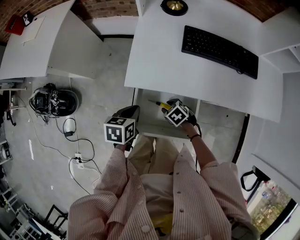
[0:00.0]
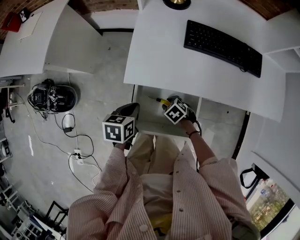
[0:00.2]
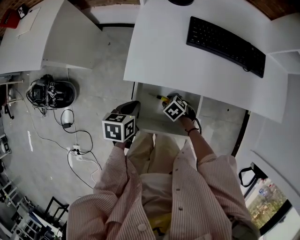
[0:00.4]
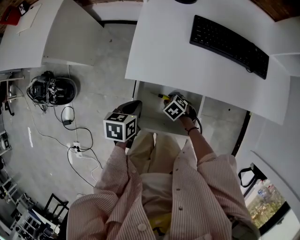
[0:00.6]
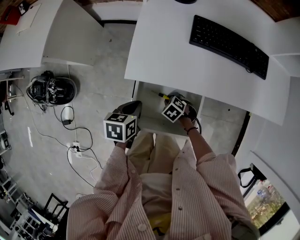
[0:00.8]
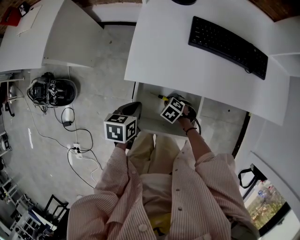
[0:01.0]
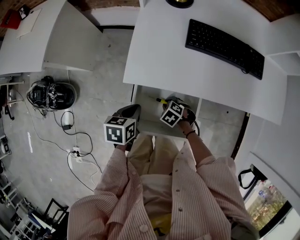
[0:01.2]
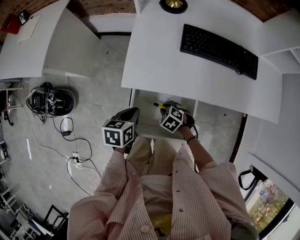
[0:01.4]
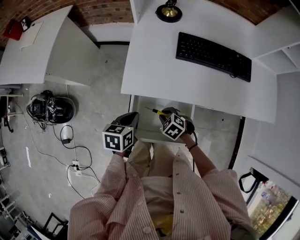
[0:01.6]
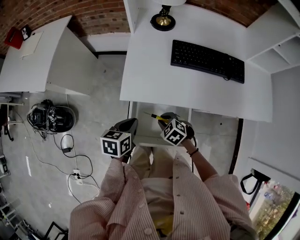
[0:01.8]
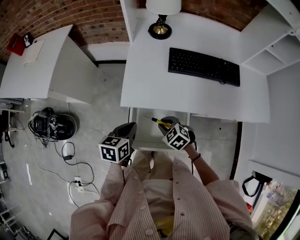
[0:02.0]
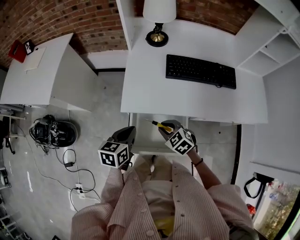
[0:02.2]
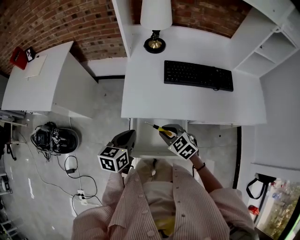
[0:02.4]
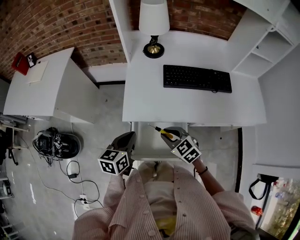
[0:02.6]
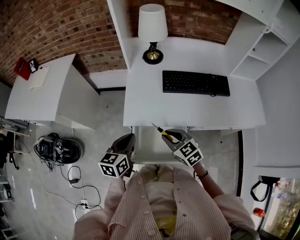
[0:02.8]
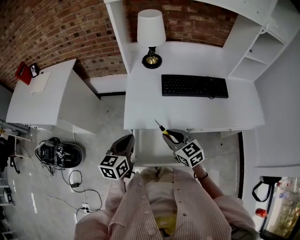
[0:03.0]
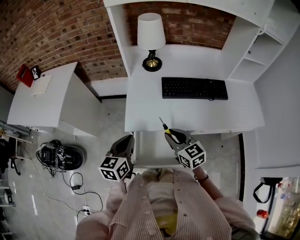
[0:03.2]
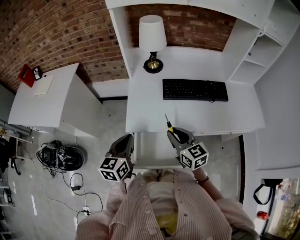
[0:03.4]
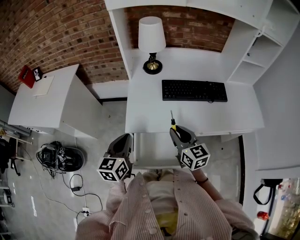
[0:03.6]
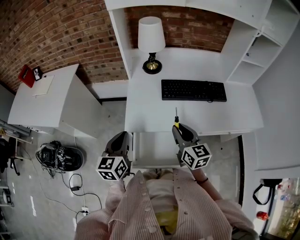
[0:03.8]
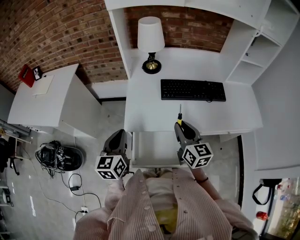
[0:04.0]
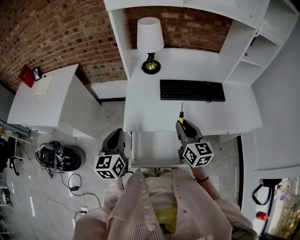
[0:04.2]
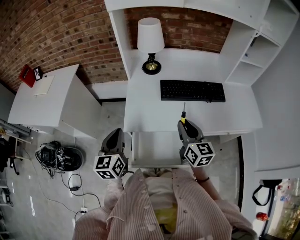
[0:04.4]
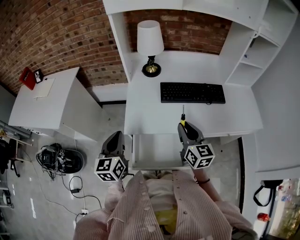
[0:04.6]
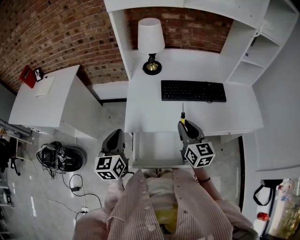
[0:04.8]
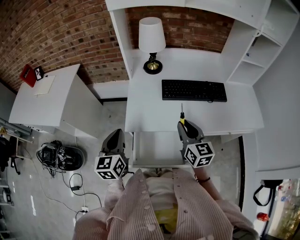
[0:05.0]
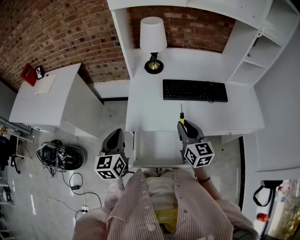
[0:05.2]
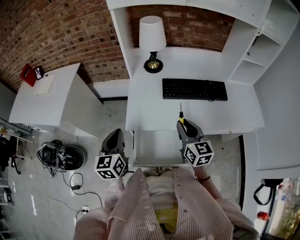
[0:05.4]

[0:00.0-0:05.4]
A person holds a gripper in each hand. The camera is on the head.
0.0 to 1.4 s: The grippers make only small movements.
1.4 to 2.8 s: The left gripper travels upward by roughly 15 cm, and rotates about 30 degrees, while the right gripper shifts roughly 25 cm upward, and points its fingers approximately 40 degrees further upward.
2.8 to 4.0 s: The left gripper travels upward by about 5 cm. Meanwhile the right gripper is displaced upward and to the right by approximately 15 cm, and rotates roughly 40 degrees.
4.0 to 5.4 s: The grippers stay close to where they were, moving slightly.

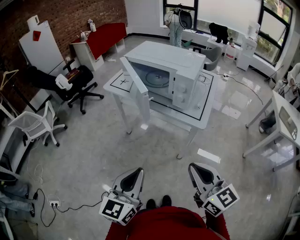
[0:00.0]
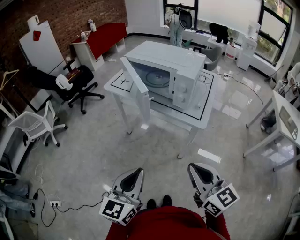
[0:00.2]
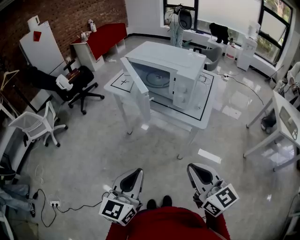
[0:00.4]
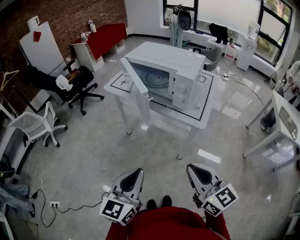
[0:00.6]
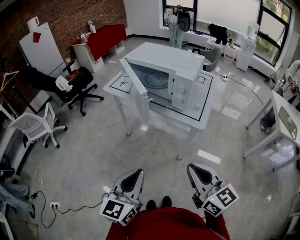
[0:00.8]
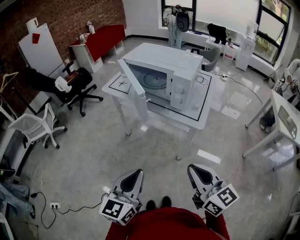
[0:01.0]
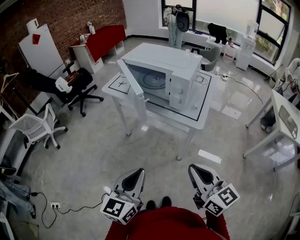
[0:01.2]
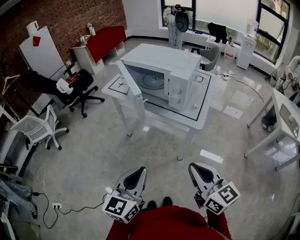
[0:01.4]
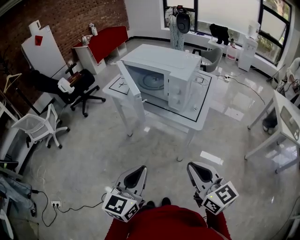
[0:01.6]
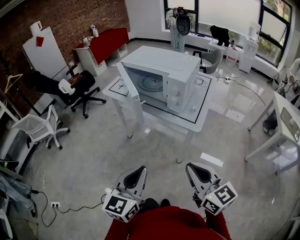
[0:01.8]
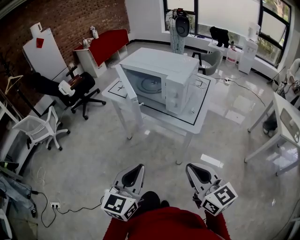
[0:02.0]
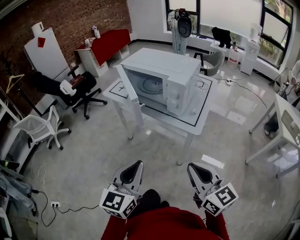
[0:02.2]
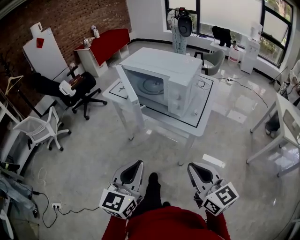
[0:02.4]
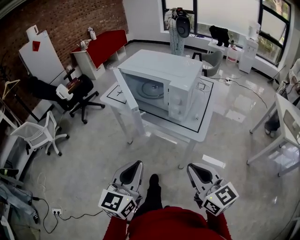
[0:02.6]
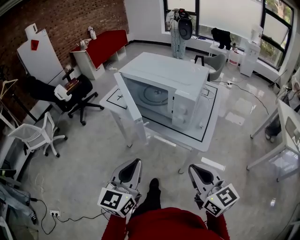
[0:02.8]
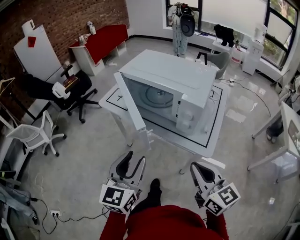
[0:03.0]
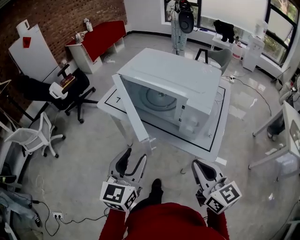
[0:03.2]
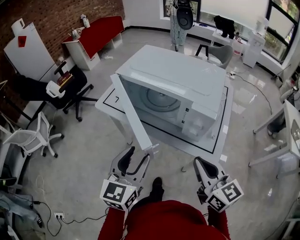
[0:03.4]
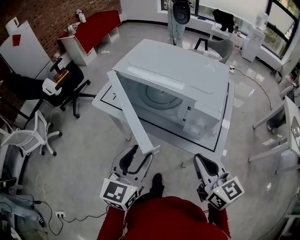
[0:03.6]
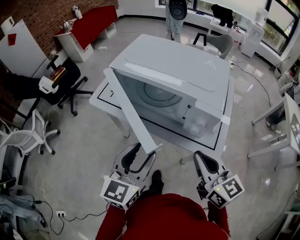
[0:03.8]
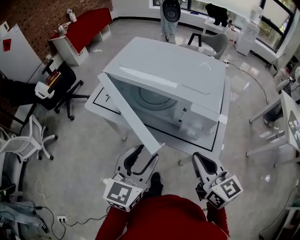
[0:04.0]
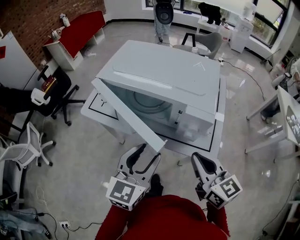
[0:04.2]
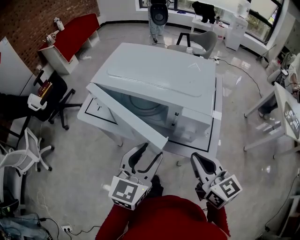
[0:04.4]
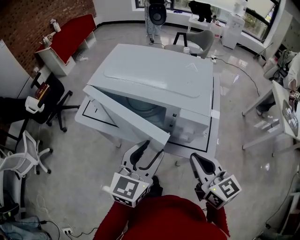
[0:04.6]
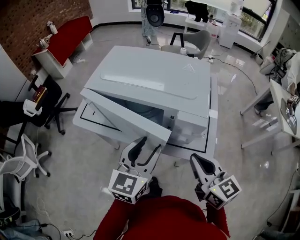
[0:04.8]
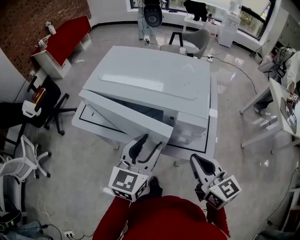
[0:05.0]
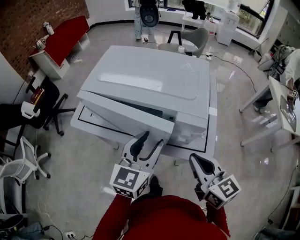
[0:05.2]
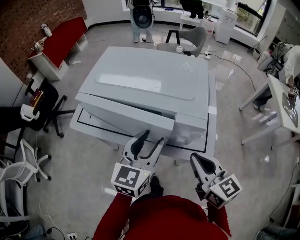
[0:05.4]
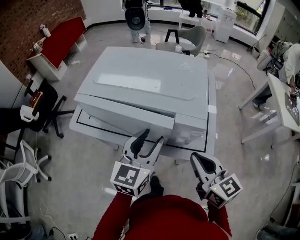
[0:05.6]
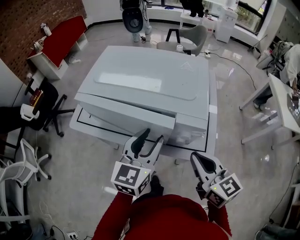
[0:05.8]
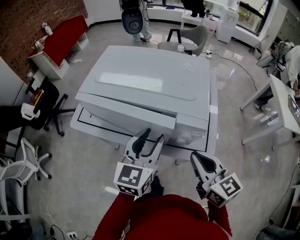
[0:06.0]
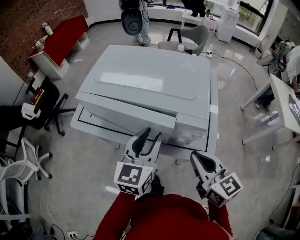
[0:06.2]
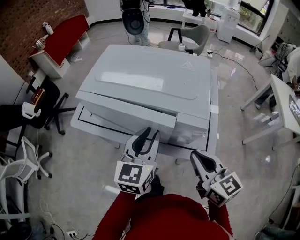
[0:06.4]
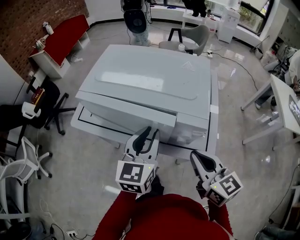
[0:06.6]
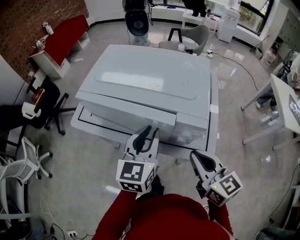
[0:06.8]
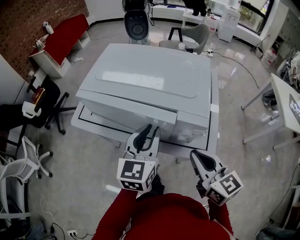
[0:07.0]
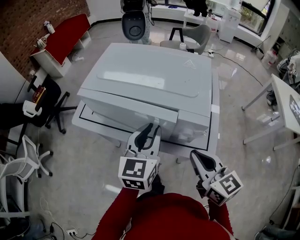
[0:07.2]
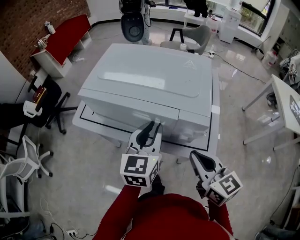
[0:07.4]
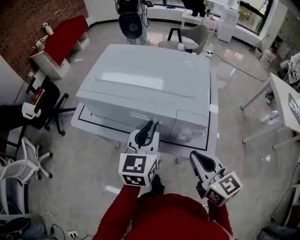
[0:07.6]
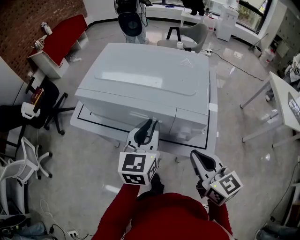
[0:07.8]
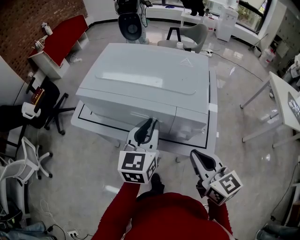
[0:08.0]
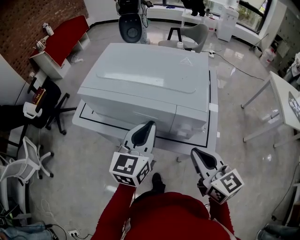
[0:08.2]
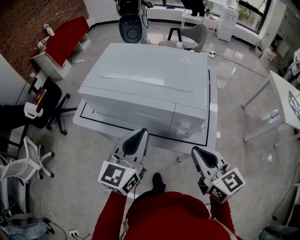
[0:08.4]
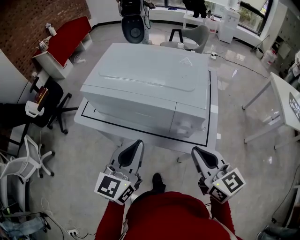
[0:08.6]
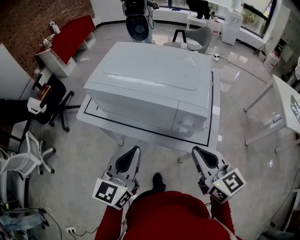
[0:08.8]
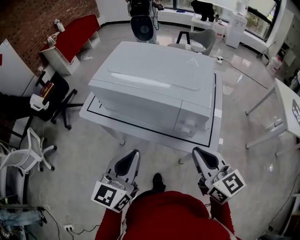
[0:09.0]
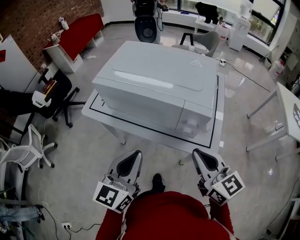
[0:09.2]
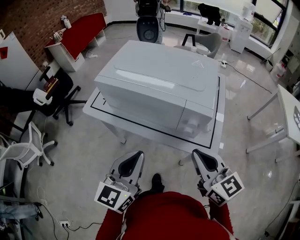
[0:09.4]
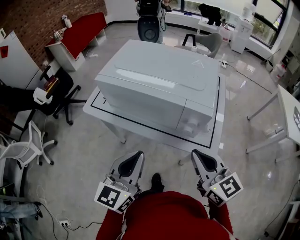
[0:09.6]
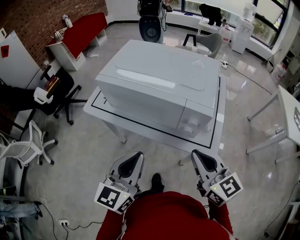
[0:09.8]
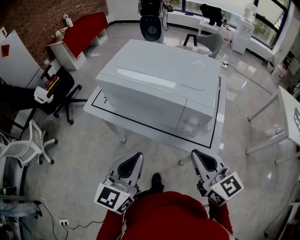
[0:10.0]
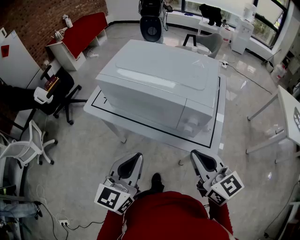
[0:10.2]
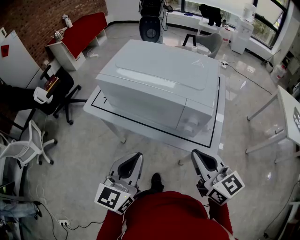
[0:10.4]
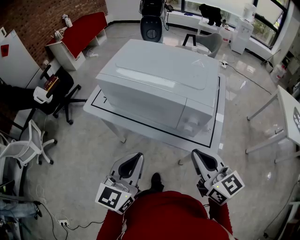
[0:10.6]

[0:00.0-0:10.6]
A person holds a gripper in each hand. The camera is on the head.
0.0 to 1.6 s: The grippers make only small movements.
1.6 to 3.0 s: Both grippers travel together forward, approximately 15 cm. The left gripper opens its fingers.
3.0 to 4.6 s: The left gripper moves forward and to the right, about 15 cm, and turns by roughly 20 degrees. The right gripper shifts approximately 10 cm forward.
4.6 to 6.0 s: The left gripper shifts some 5 cm forward.
6.0 to 7.6 s: The left gripper closes up.
7.6 to 9.0 s: The left gripper travels backward and to the left by about 15 cm.
9.0 to 10.6 s: The grippers move only a little.

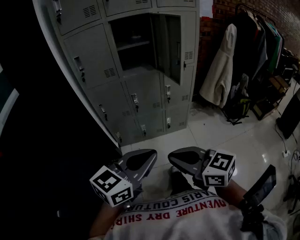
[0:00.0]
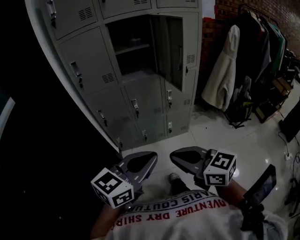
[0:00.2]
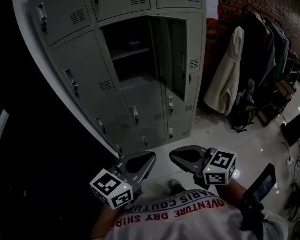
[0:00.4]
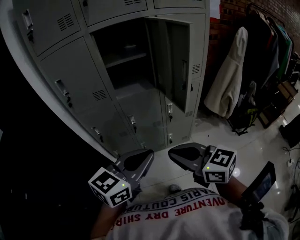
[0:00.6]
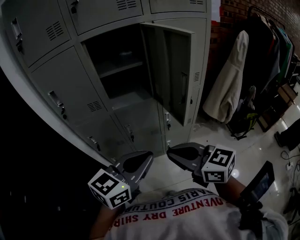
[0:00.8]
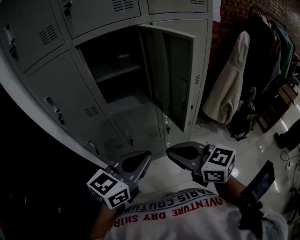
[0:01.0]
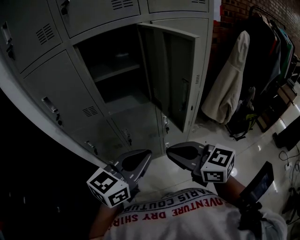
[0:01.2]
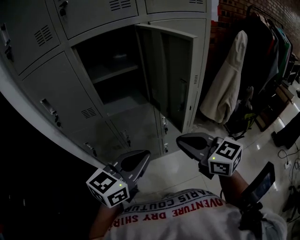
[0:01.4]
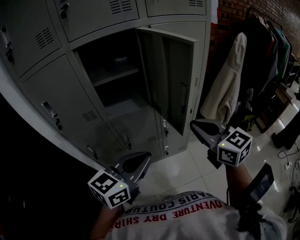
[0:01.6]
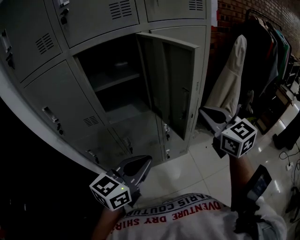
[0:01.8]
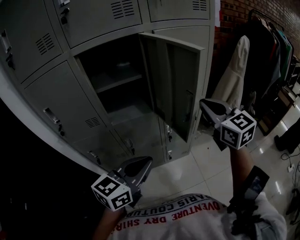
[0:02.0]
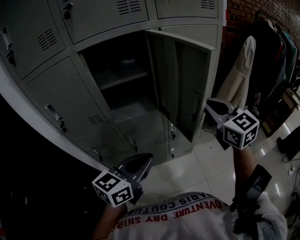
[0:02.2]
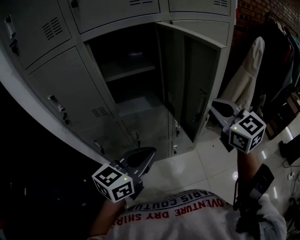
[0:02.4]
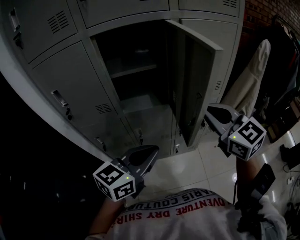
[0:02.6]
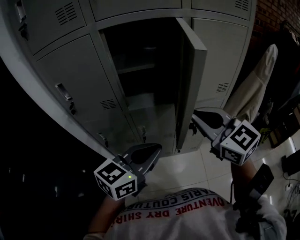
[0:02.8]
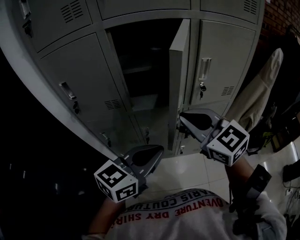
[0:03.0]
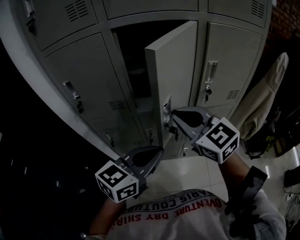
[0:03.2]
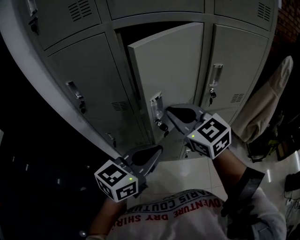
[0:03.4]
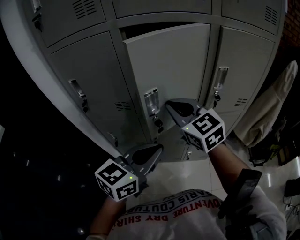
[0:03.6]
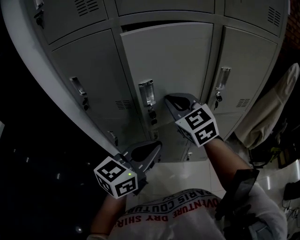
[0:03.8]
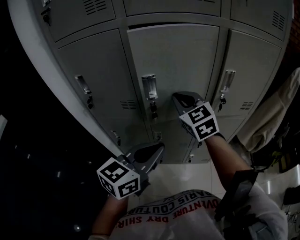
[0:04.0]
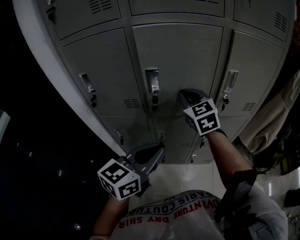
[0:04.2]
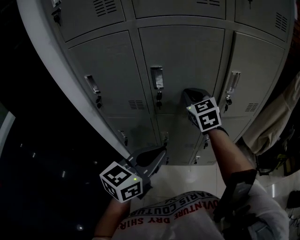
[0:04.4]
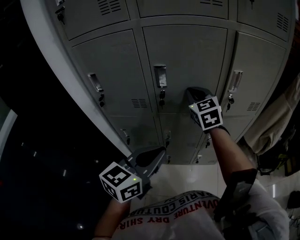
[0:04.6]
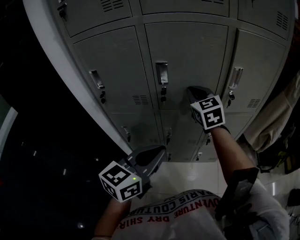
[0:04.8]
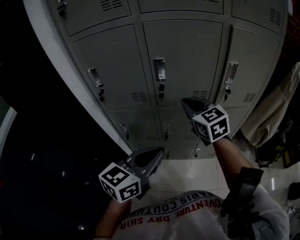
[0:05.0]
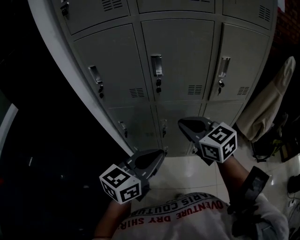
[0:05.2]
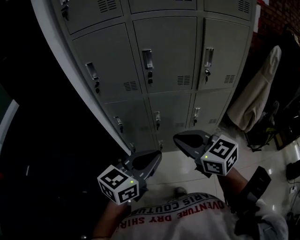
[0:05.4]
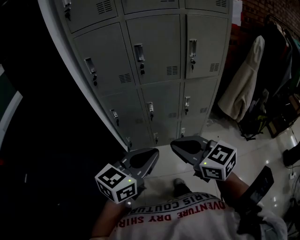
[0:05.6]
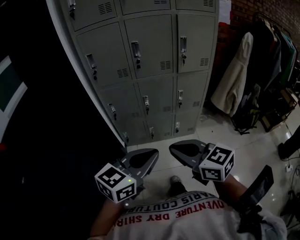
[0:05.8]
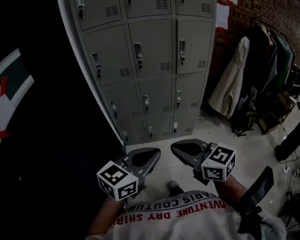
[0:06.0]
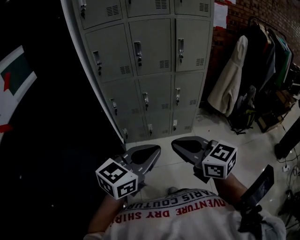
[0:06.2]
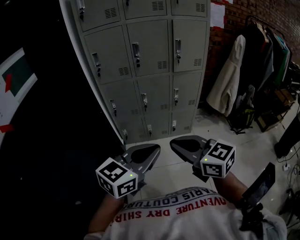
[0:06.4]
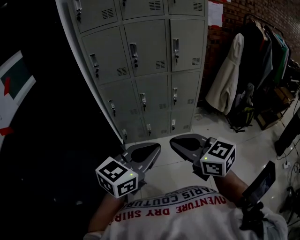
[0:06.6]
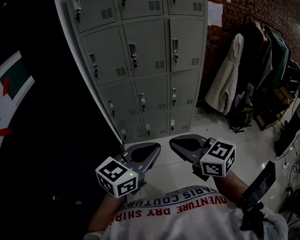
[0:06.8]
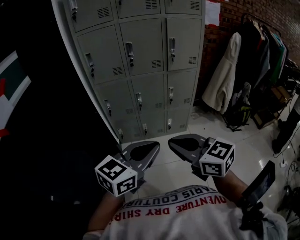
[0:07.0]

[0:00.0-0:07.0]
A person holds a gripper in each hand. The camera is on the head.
0.0 to 1.4 s: Both grippers move forward, roughly 35 cm.
1.4 to 2.8 s: The right gripper travels forward, upward and to the left by approximately 15 cm. The left gripper shifts by some 5 cm.
2.8 to 4.2 s: The left gripper shifts some 5 cm to the left. The right gripper heads forward and to the left, covering roughly 20 cm.
4.2 to 5.6 s: The right gripper goes roughly 50 cm backward, and swivels some 30 degrees. Meanwhile the left gripper is displaced backward by approximately 25 cm.
5.6 to 7.0 s: Both grippers move backward, about 15 cm.

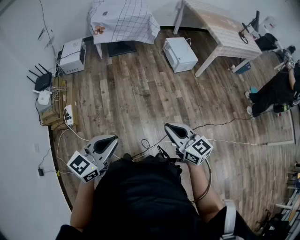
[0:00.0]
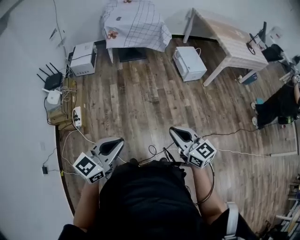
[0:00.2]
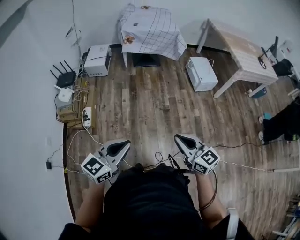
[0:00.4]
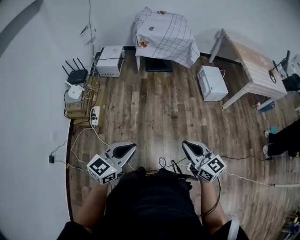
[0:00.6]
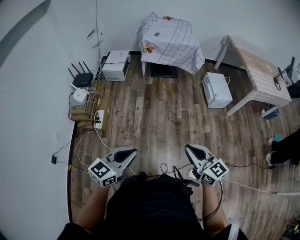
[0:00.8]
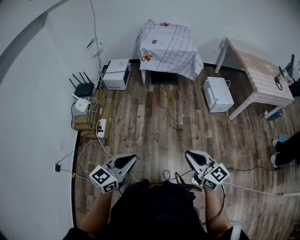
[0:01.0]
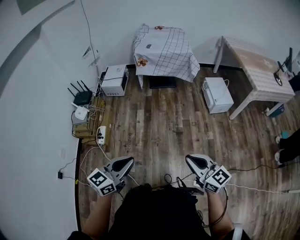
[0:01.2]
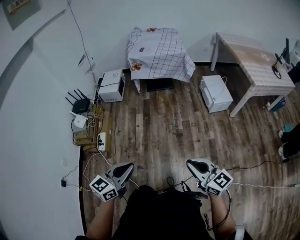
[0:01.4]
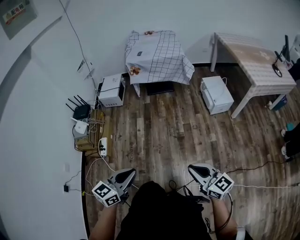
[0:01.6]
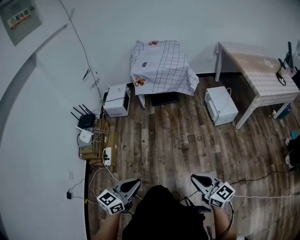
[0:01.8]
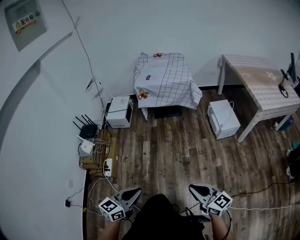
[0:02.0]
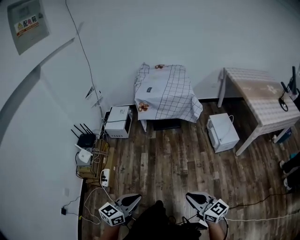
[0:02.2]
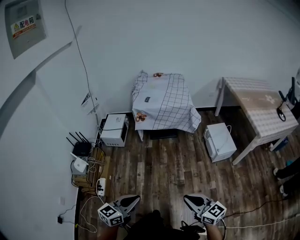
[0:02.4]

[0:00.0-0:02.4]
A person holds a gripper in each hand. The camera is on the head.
0.0 to 1.2 s: The left gripper ends up about 5 cm from where it was, while the right gripper changes place by roughly 5 cm.
1.2 to 2.4 s: The two grippers go about 20 cm forward.
